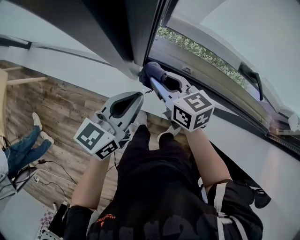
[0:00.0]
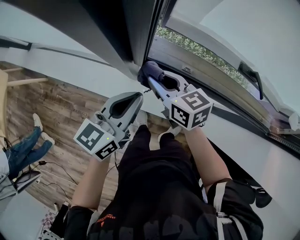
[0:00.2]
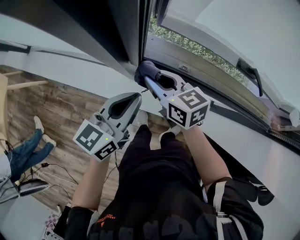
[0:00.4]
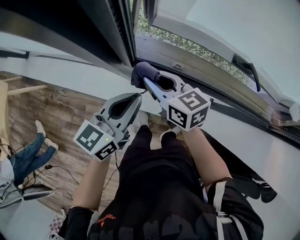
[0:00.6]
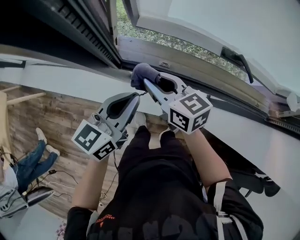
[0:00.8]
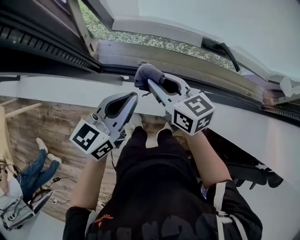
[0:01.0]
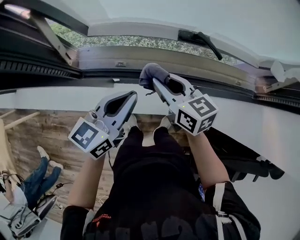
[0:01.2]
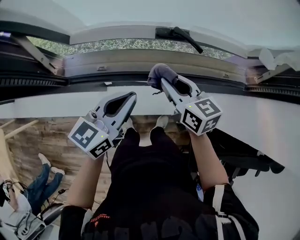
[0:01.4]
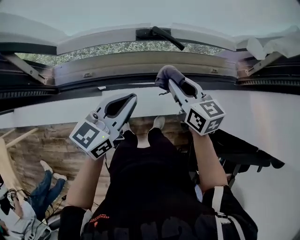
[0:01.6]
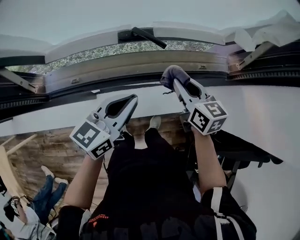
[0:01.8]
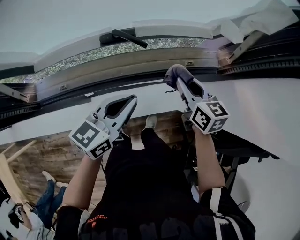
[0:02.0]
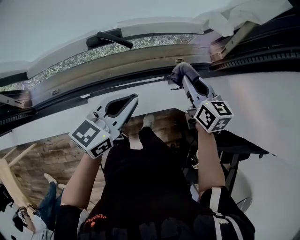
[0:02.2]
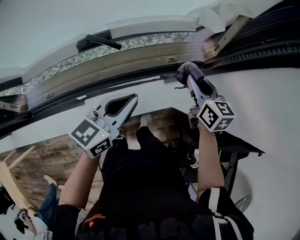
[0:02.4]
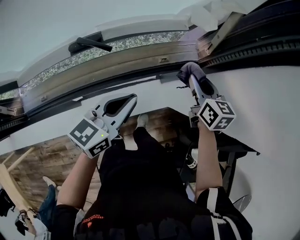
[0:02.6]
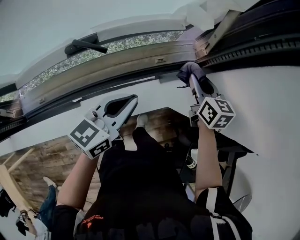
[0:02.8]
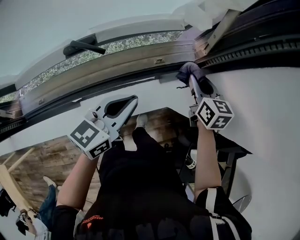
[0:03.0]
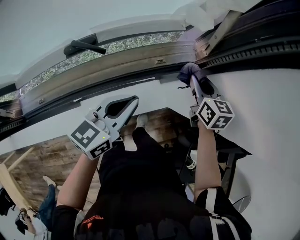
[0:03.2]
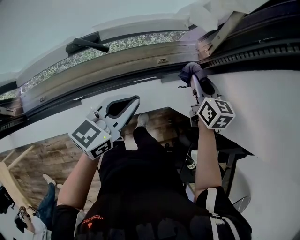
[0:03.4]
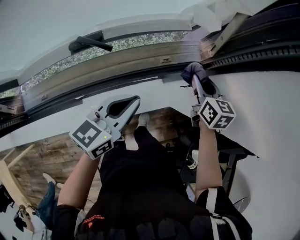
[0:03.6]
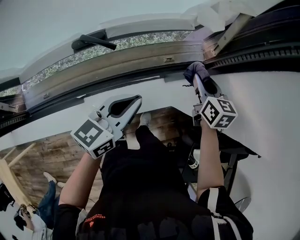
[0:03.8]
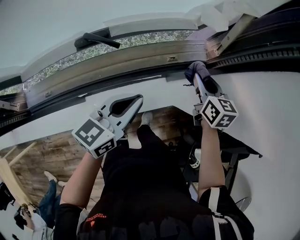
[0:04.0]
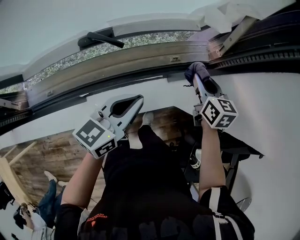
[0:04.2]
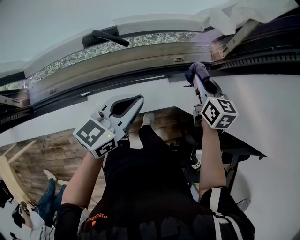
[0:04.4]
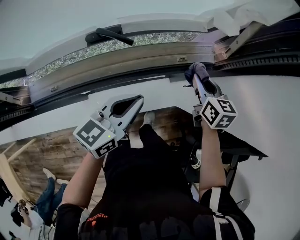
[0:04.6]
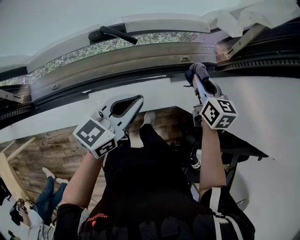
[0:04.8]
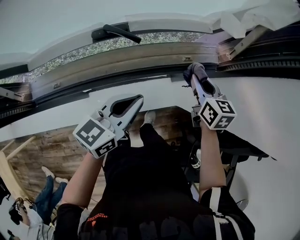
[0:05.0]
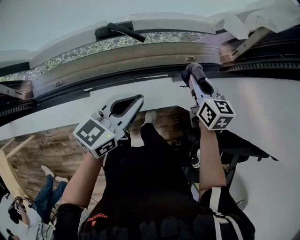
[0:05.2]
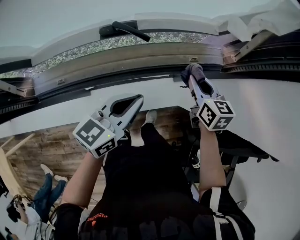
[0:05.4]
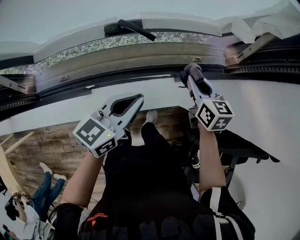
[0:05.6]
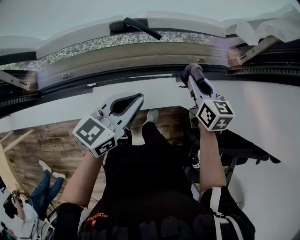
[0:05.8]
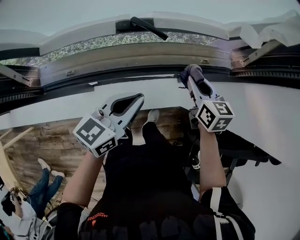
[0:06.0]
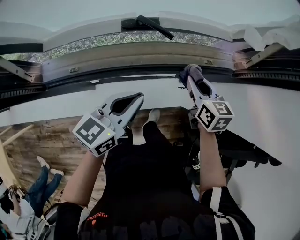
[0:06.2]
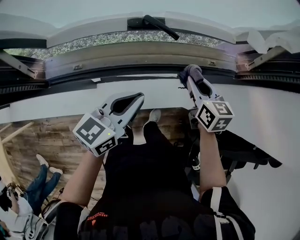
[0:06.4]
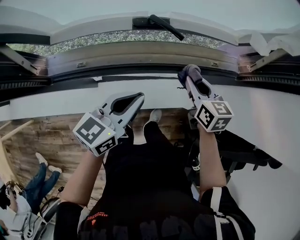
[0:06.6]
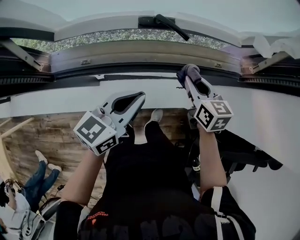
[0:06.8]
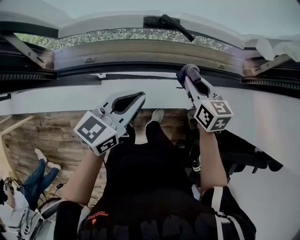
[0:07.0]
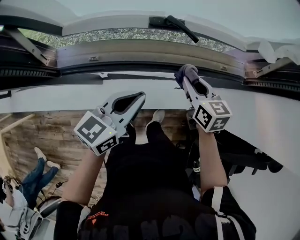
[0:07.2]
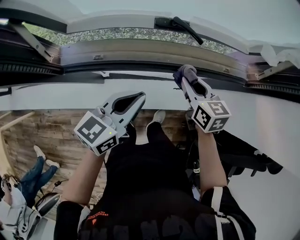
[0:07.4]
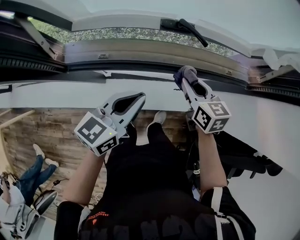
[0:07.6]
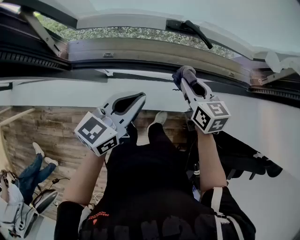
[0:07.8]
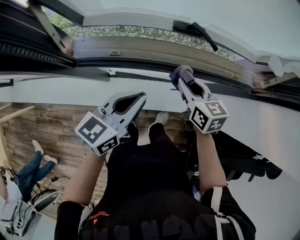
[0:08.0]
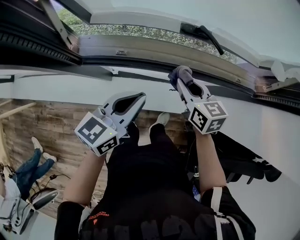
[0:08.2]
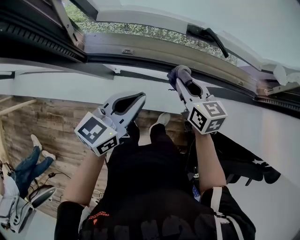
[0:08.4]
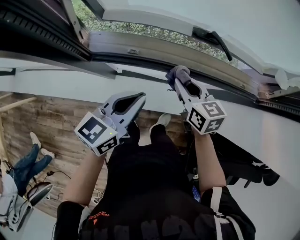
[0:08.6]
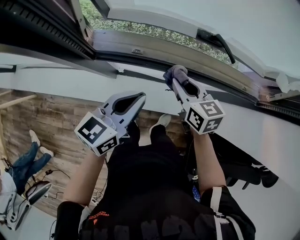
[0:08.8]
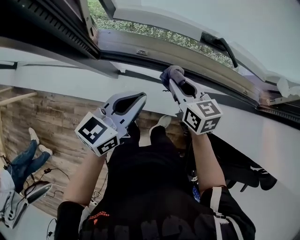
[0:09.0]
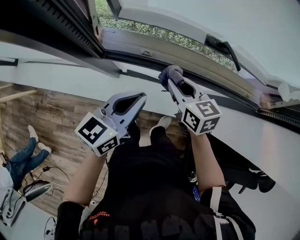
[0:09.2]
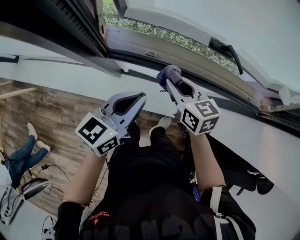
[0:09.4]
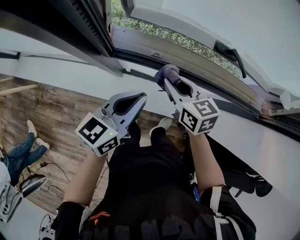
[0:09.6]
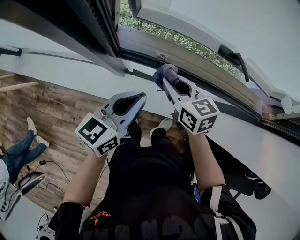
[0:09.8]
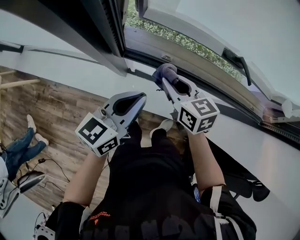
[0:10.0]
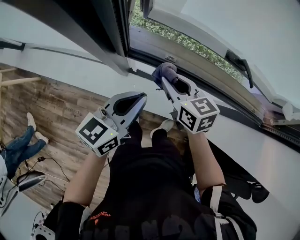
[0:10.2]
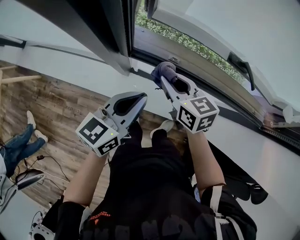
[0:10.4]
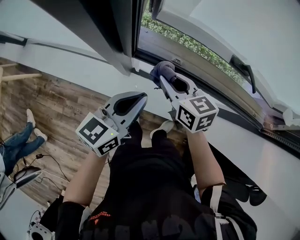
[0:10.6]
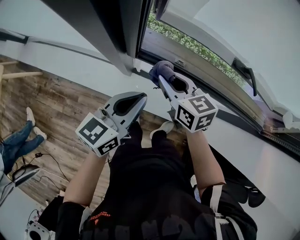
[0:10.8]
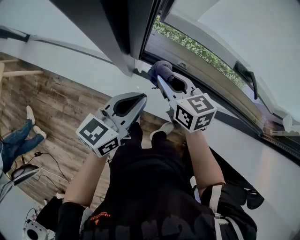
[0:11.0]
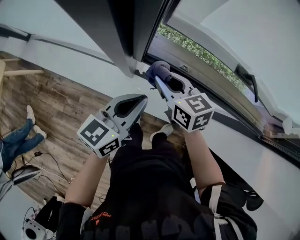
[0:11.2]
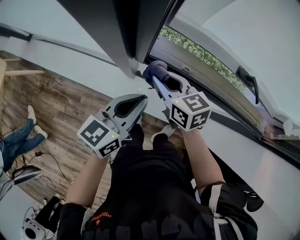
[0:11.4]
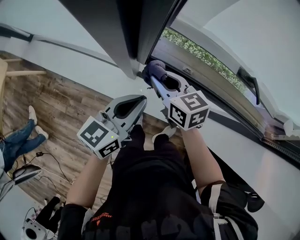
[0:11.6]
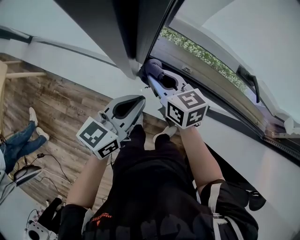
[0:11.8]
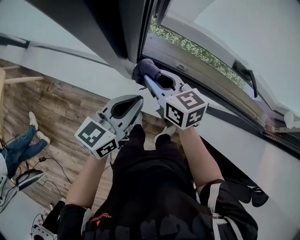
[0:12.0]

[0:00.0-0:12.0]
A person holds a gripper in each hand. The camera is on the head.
0:00.0 to 0:01.6: The left gripper shifts by roughly 30 cm, and swivels approximately 30 degrees, while the right gripper moves about 40 cm, and rotates about 30 degrees.
0:01.6 to 0:03.0: The right gripper goes some 30 cm to the right, and rotates about 30 degrees. Meanwhile the left gripper moves to the right and forward, approximately 25 cm.
0:03.0 to 0:04.4: The right gripper changes place by about 5 cm.
0:04.4 to 0:06.0: The right gripper is displaced to the left and backward by about 15 cm, while the left gripper moves to the left, approximately 10 cm.
0:06.0 to 0:07.6: Both grippers travel together to the left, about 10 cm.
0:07.6 to 0:09.0: The right gripper moves to the left, approximately 15 cm, while the left gripper heads to the left, covering approximately 10 cm.
0:09.0 to 0:10.4: The right gripper travels to the left by approximately 15 cm. The left gripper heads to the left, covering approximately 10 cm.
0:10.4 to 0:12.0: The right gripper shifts some 10 cm to the left.

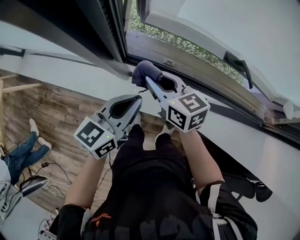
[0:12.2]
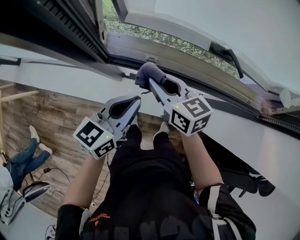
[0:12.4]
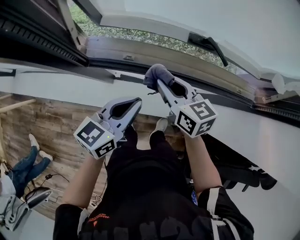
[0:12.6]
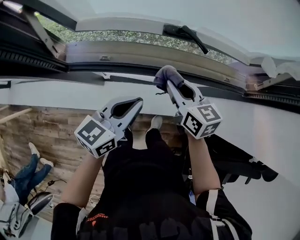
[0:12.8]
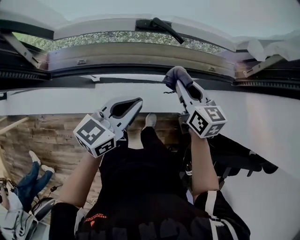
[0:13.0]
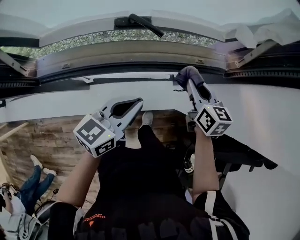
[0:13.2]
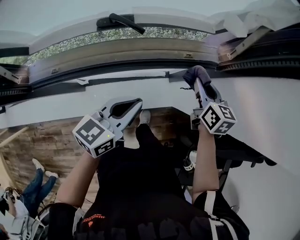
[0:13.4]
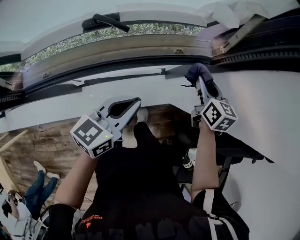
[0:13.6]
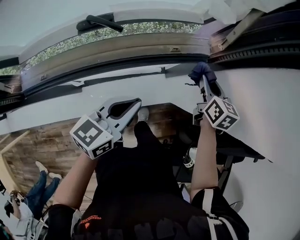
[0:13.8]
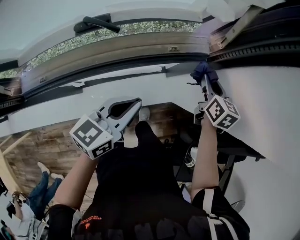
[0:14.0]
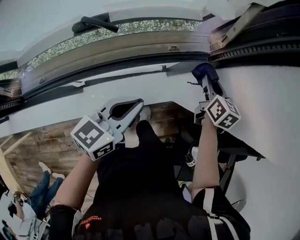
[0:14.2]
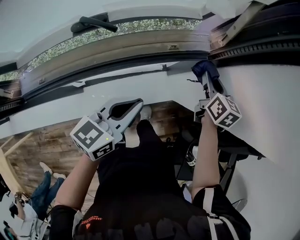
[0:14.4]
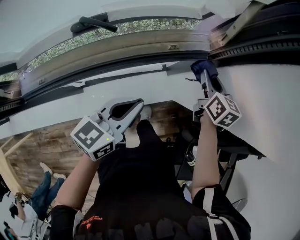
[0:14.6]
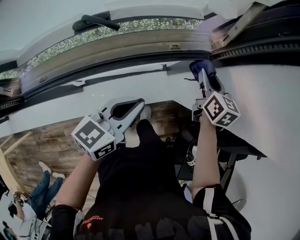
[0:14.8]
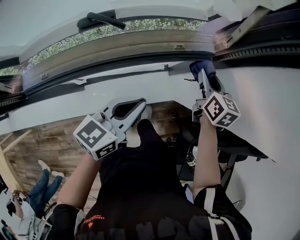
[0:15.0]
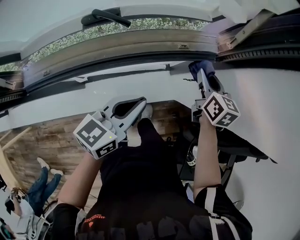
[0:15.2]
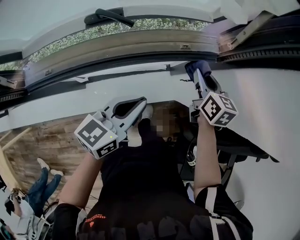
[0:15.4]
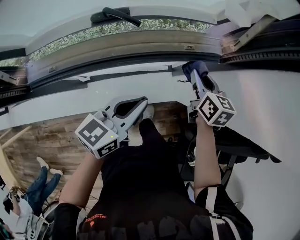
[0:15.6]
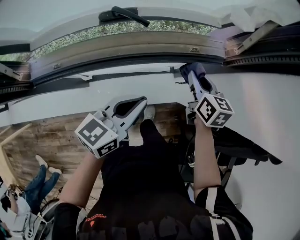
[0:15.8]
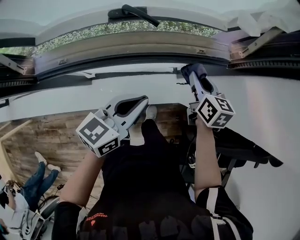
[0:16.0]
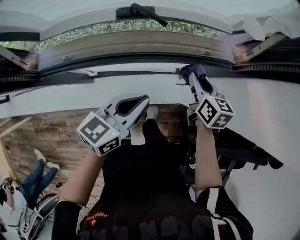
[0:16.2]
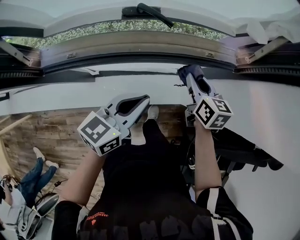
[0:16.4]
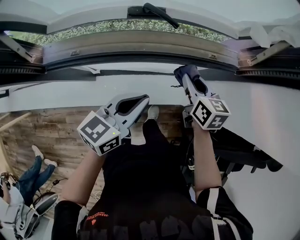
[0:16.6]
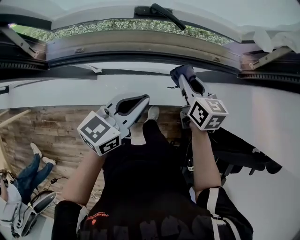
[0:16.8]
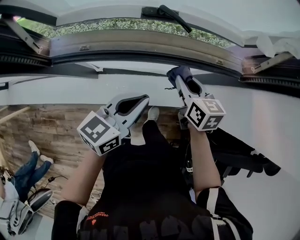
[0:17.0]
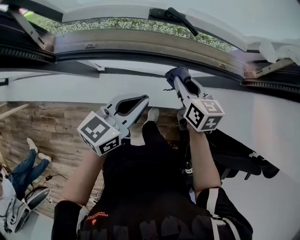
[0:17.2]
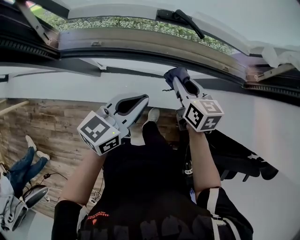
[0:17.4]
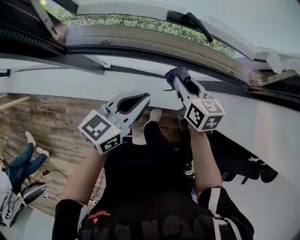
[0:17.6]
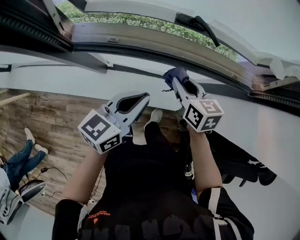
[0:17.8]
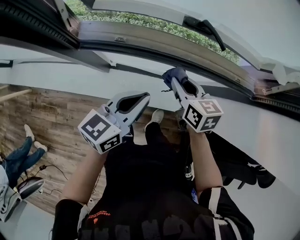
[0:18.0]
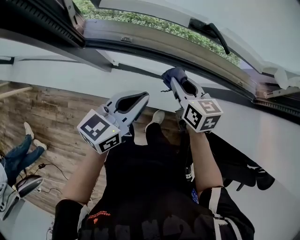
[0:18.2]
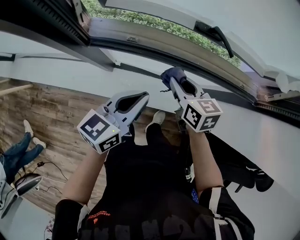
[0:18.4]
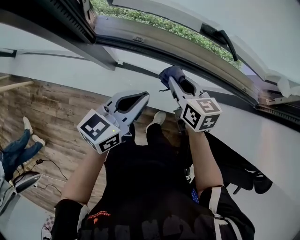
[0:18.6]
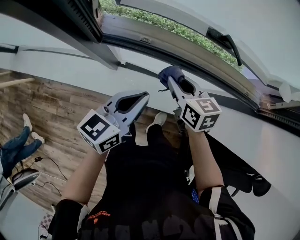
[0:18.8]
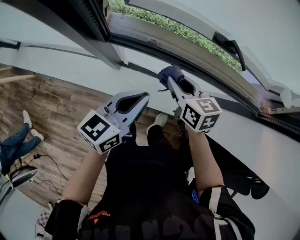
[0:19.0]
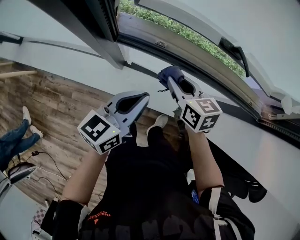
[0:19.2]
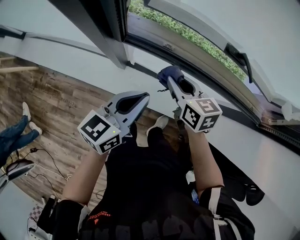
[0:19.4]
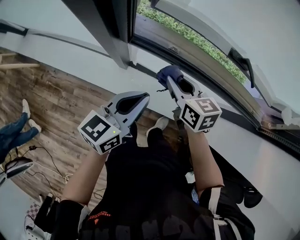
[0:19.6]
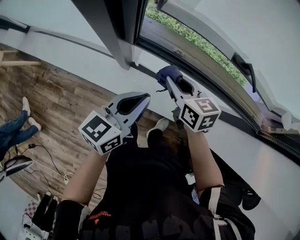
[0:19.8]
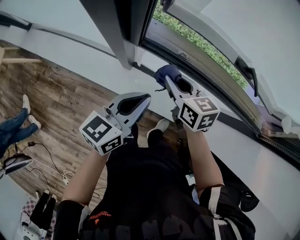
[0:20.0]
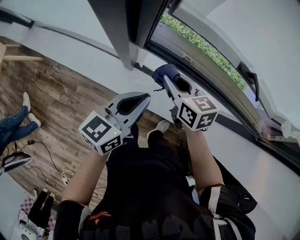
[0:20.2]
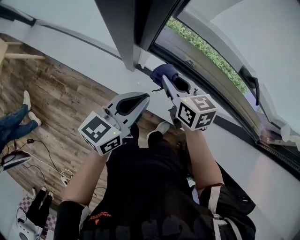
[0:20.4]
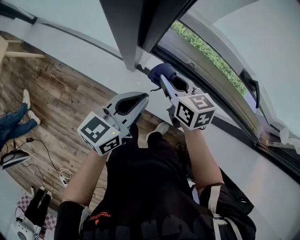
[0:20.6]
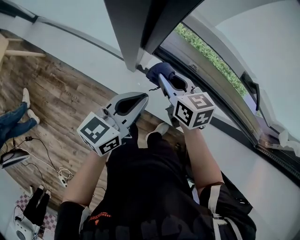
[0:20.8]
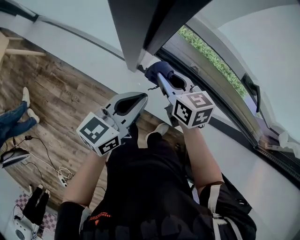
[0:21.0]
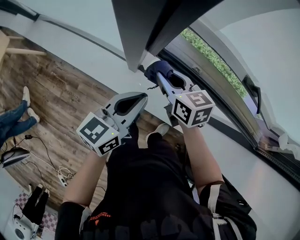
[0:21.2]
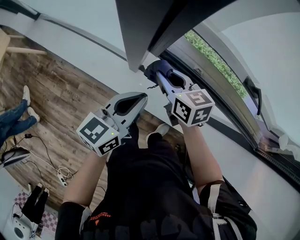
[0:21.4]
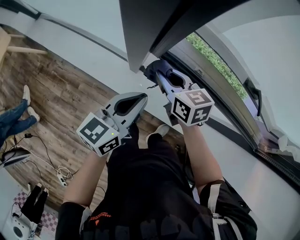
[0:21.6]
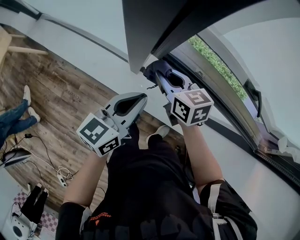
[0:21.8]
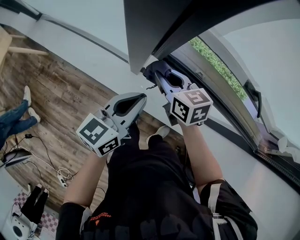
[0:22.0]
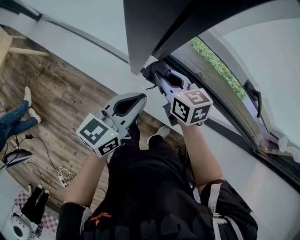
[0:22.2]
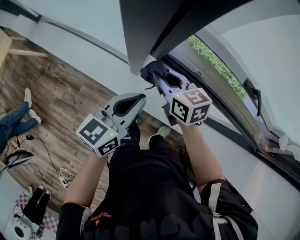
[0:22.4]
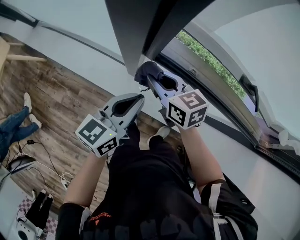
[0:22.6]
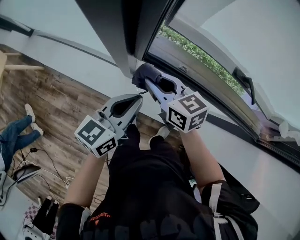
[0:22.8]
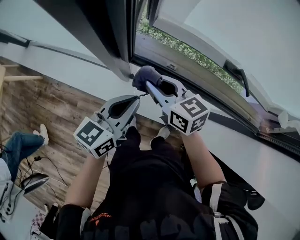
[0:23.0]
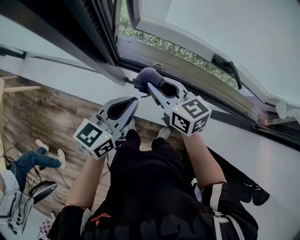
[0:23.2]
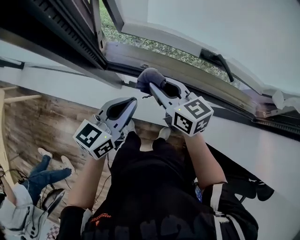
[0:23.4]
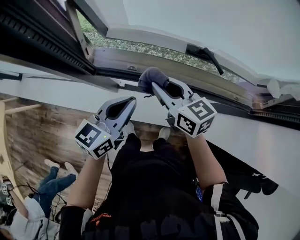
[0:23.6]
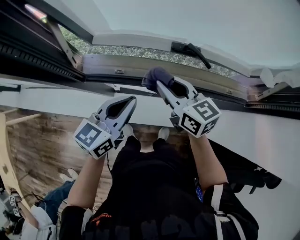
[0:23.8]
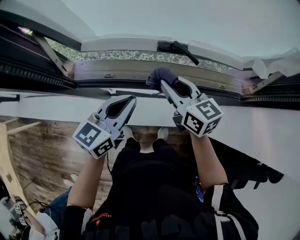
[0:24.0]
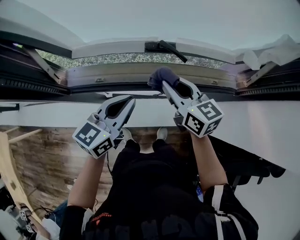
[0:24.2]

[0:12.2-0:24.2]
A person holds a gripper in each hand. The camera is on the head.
0:12.2 to 0:13.8: The pair of grippers is taken roughly 60 cm. The left gripper turns by approximately 30 degrees; the right gripper turns by roughly 60 degrees.
0:13.8 to 0:15.2: The grippers stay close to where they were, moving slightly.
0:15.2 to 0:16.6: The left gripper shifts about 10 cm to the left. Meanwhile the right gripper heads to the left and backward, covering roughly 20 cm.
0:16.6 to 0:18.2: The grippers both shift to the left by roughly 20 cm. The right gripper changes its angle by approximately 20 degrees.
0:18.2 to 0:19.8: The two grippers go approximately 15 cm to the left.
0:19.8 to 0:21.2: The grippers both shift to the left by some 10 cm.
0:21.2 to 0:22.6: There are only small adjustments of the grippers.
0:22.6 to 0:24.2: The left gripper shifts by approximately 30 cm, and rotates roughly 30 degrees; the right gripper ends up approximately 40 cm from where it was, and swivels roughly 40 degrees.
